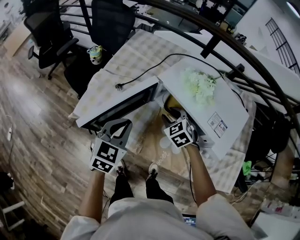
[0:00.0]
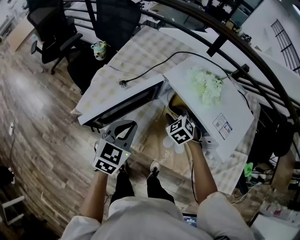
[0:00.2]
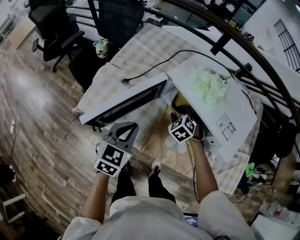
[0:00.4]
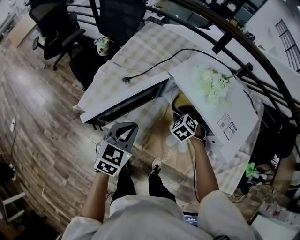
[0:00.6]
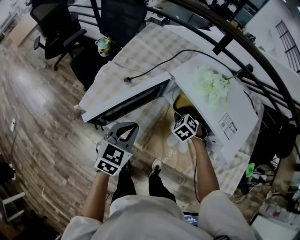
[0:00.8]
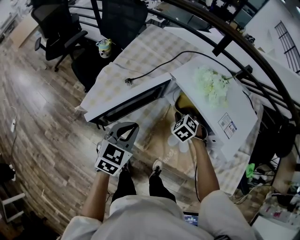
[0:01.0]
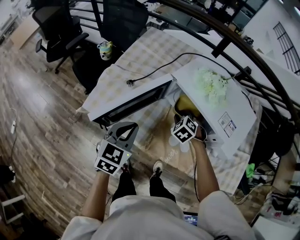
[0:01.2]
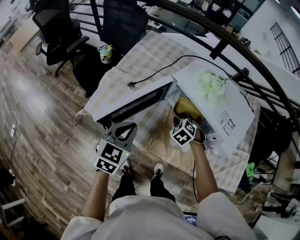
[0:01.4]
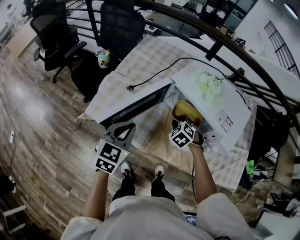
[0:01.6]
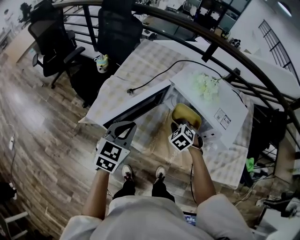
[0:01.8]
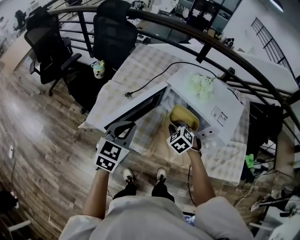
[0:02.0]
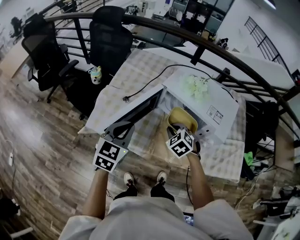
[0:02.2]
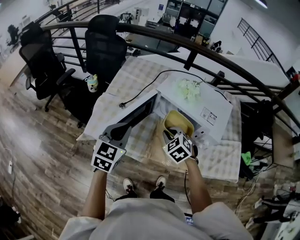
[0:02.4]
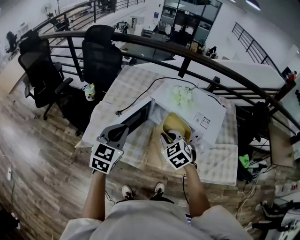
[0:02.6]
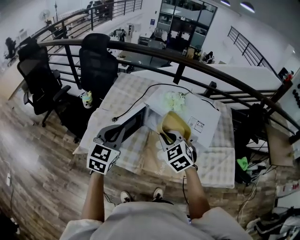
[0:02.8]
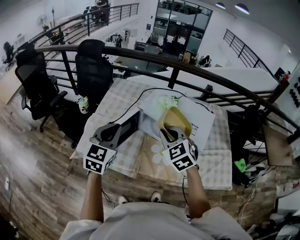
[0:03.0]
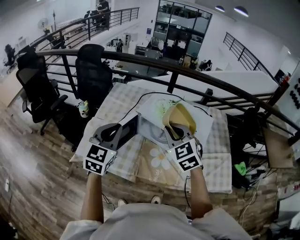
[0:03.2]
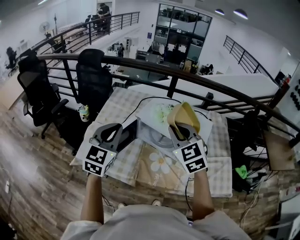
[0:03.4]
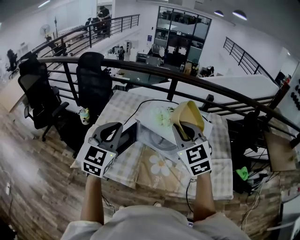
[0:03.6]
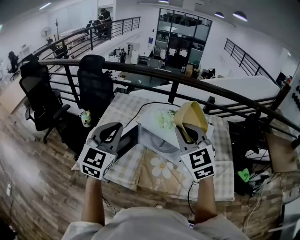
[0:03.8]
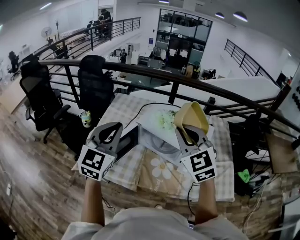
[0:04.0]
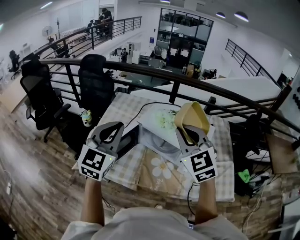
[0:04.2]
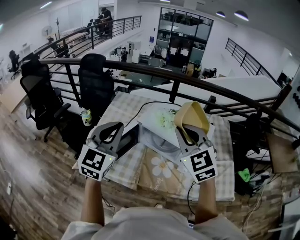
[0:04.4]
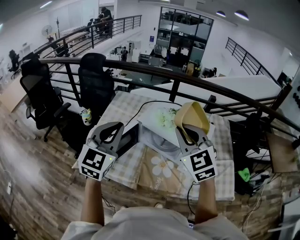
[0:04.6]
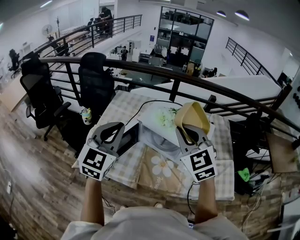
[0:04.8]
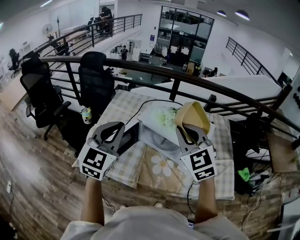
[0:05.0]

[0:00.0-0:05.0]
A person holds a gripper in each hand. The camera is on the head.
0:00.0 to 0:01.6: The left gripper ends up approximately 5 cm from where it was. The right gripper shifts by about 5 cm, and closes.
0:01.6 to 0:03.4: The right gripper goes about 35 cm upward, and points its fingers roughly 40 degrees further upward. Meanwhile the left gripper heads upward, covering about 20 cm, and rotates some 20 degrees.
0:03.4 to 0:05.0: The grippers stay close to where they were, moving slightly.

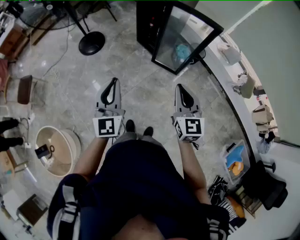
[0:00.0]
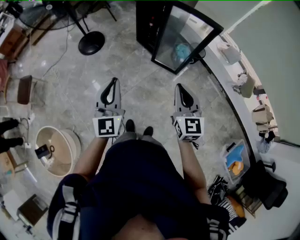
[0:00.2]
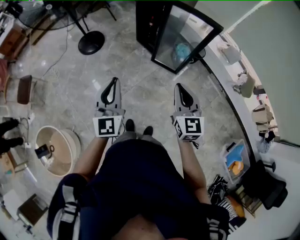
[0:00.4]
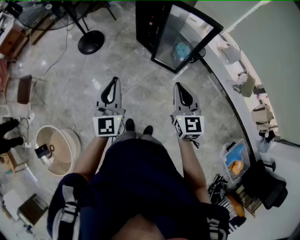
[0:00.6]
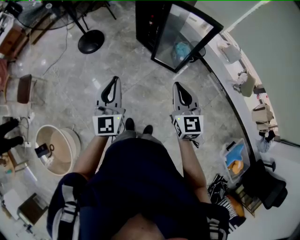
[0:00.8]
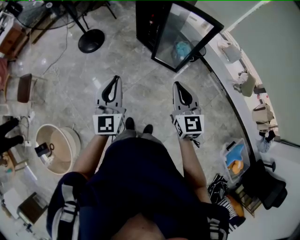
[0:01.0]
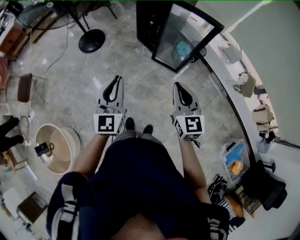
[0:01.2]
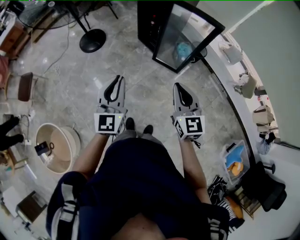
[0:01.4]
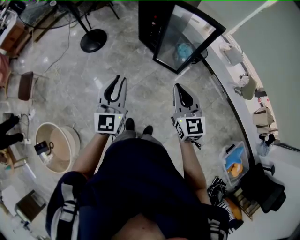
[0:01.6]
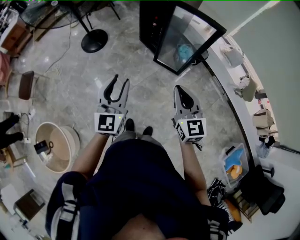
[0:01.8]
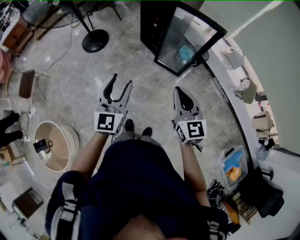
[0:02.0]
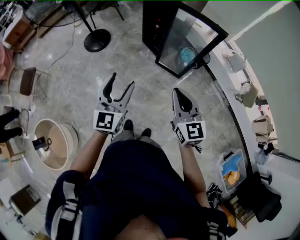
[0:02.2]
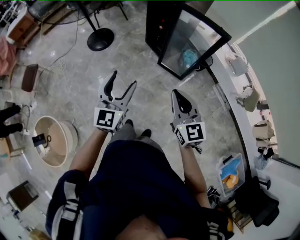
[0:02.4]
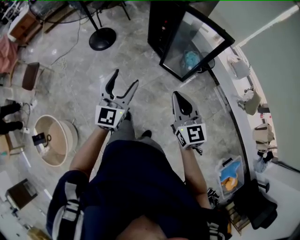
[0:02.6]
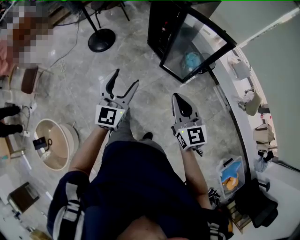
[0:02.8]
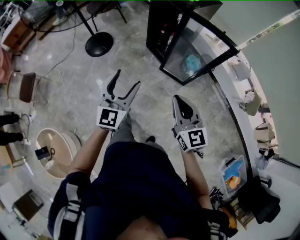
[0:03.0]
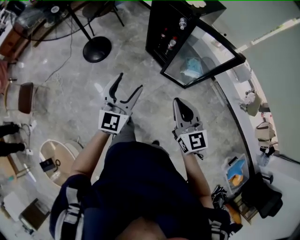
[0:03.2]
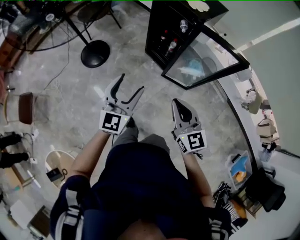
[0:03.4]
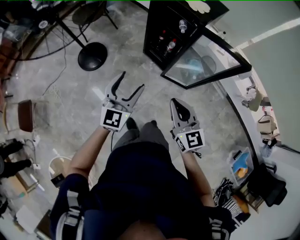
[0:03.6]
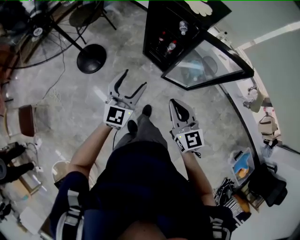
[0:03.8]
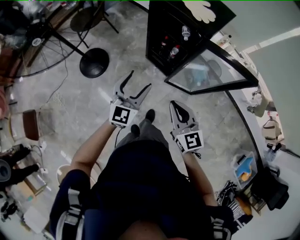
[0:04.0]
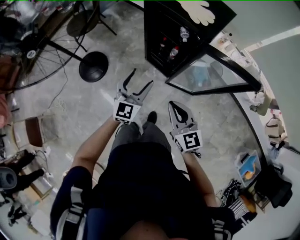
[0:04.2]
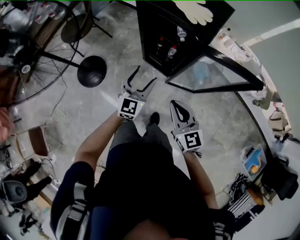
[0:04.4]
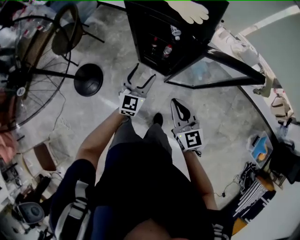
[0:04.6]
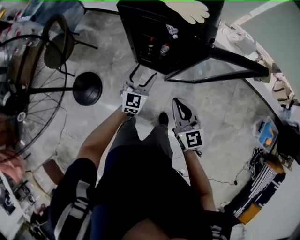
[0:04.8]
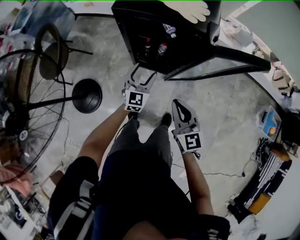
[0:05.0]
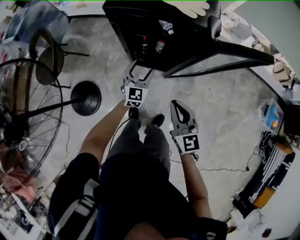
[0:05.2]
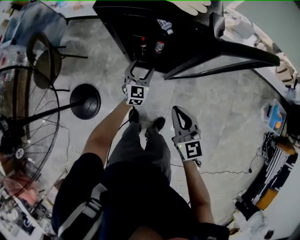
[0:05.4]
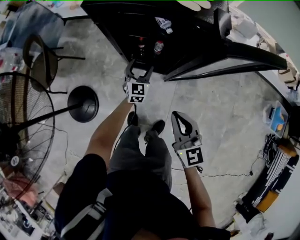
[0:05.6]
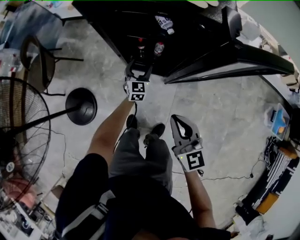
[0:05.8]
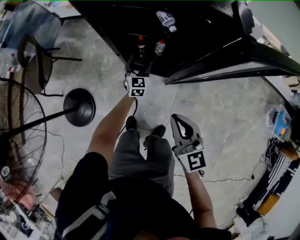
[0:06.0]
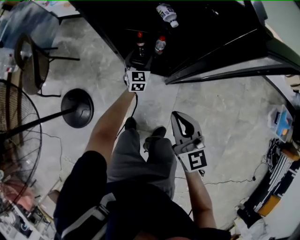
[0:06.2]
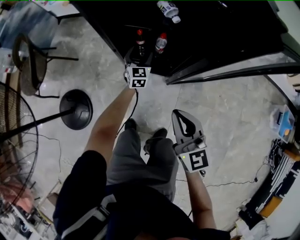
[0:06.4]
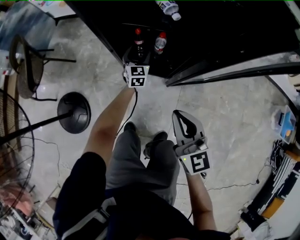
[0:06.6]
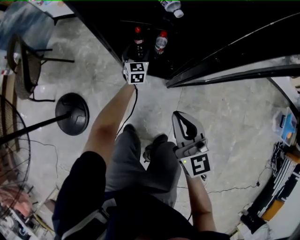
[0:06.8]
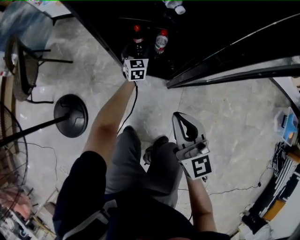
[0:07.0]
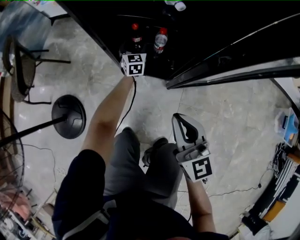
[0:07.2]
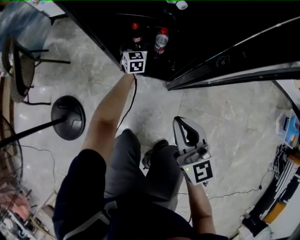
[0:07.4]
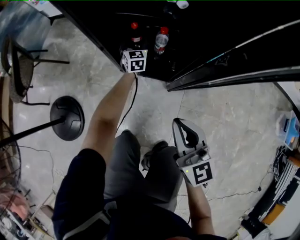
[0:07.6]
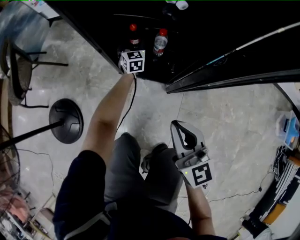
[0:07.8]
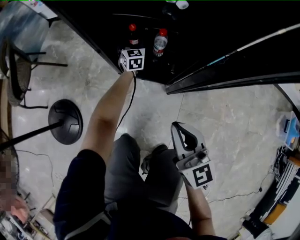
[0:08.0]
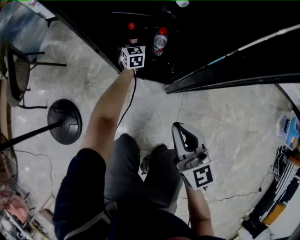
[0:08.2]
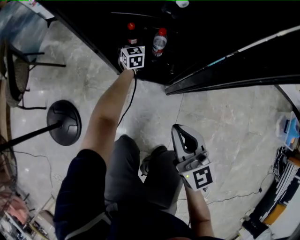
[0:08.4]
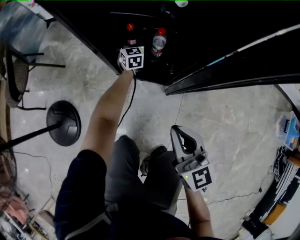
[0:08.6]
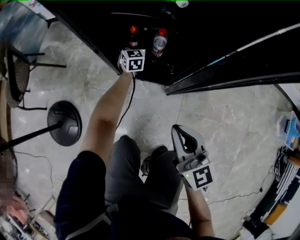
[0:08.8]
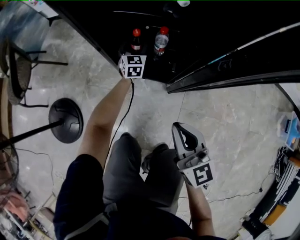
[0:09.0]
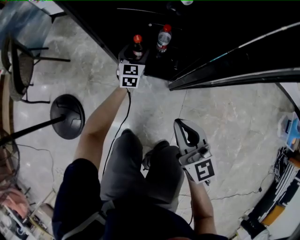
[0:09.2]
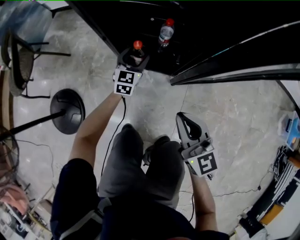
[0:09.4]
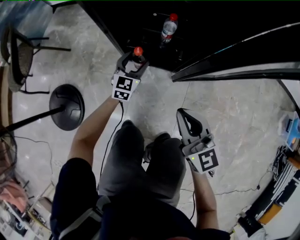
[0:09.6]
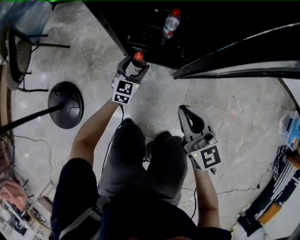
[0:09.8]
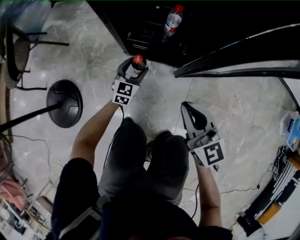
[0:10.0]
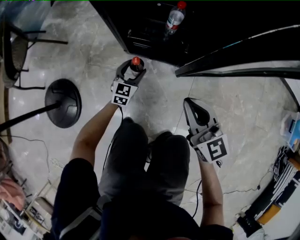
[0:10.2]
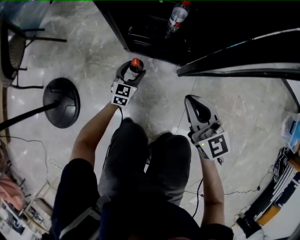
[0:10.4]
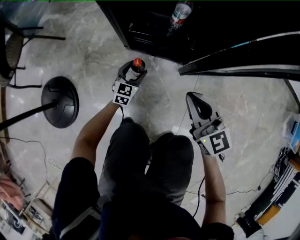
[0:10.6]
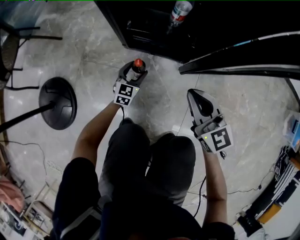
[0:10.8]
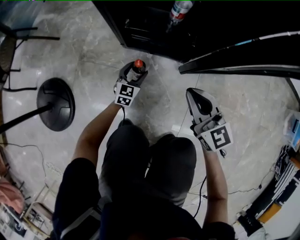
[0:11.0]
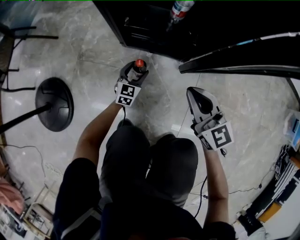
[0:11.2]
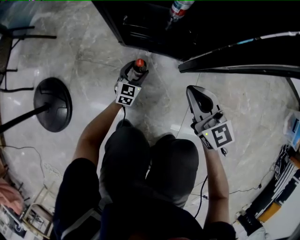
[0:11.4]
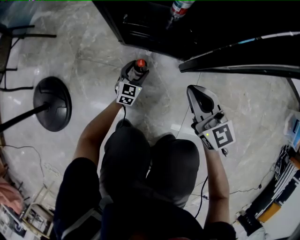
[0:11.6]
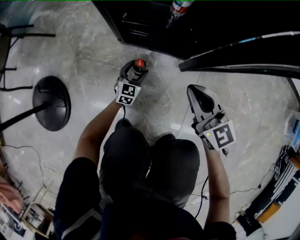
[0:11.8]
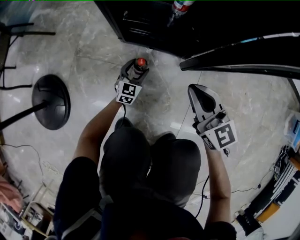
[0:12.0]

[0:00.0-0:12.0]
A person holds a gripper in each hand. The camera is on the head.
0:00.0 to 0:01.6: There are only small adjustments of the grippers.
0:01.6 to 0:03.0: The right gripper moves forward and to the left, about 10 cm. The left gripper travels forward by approximately 10 cm, and opens its fingers.
0:03.0 to 0:04.4: Both grippers travel together forward, about 40 cm. The left gripper rotates roughly 20 degrees.
0:04.4 to 0:06.0: The left gripper travels downward and forward by roughly 40 cm. The right gripper moves downward and forward, about 20 cm, and changes its angle by some 20 degrees.
0:06.0 to 0:07.6: The right gripper shifts roughly 15 cm downward. The left gripper heads downward and forward, covering some 25 cm.
0:07.6 to 0:09.0: The grippers stay close to where they were, moving slightly.
0:09.0 to 0:10.4: The left gripper shifts approximately 25 cm backward and downward. Meanwhile the right gripper travels downward by about 10 cm.
0:10.4 to 0:12.0: Both grippers move downward, some 10 cm.

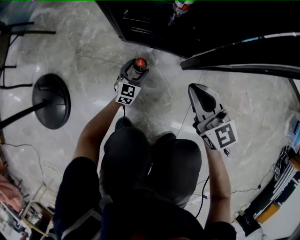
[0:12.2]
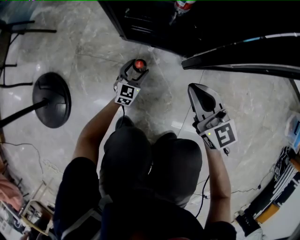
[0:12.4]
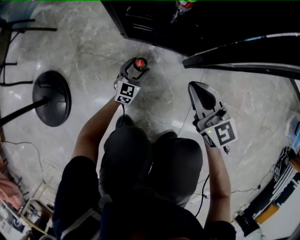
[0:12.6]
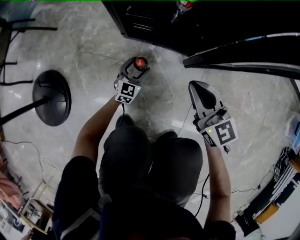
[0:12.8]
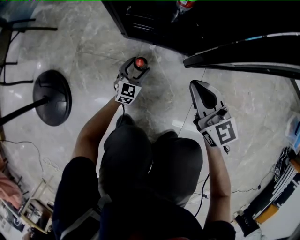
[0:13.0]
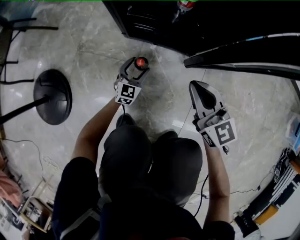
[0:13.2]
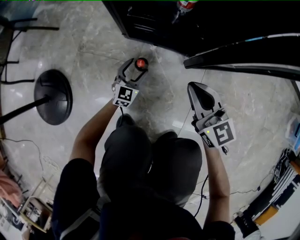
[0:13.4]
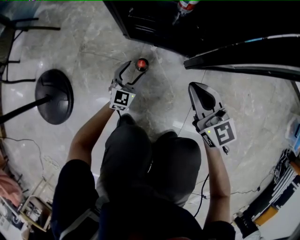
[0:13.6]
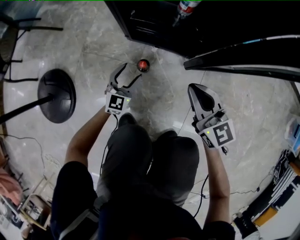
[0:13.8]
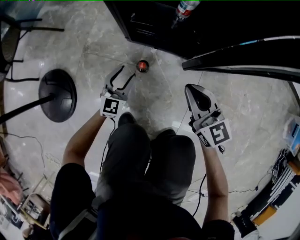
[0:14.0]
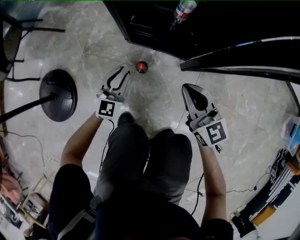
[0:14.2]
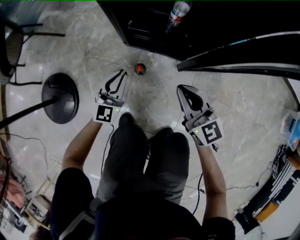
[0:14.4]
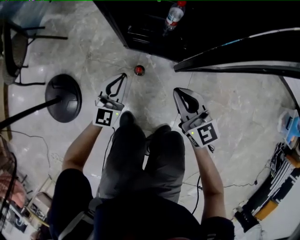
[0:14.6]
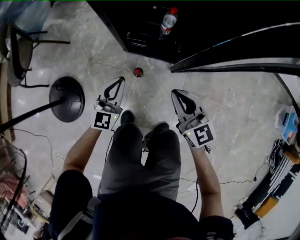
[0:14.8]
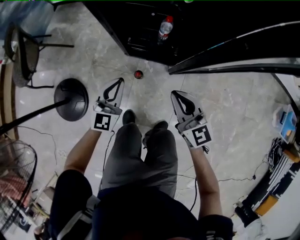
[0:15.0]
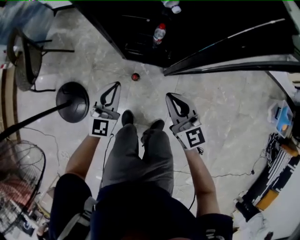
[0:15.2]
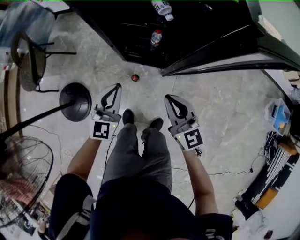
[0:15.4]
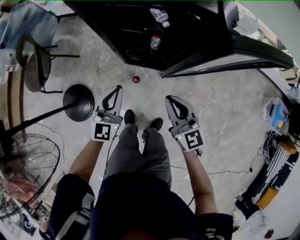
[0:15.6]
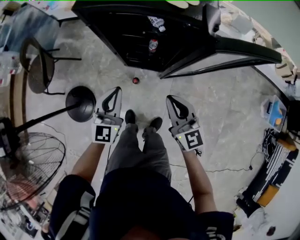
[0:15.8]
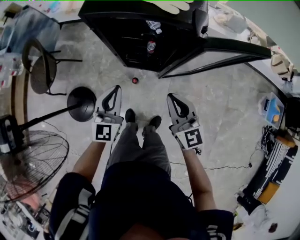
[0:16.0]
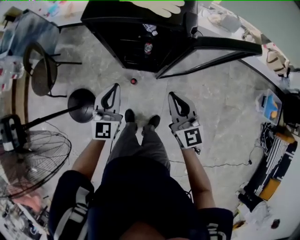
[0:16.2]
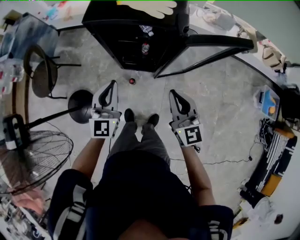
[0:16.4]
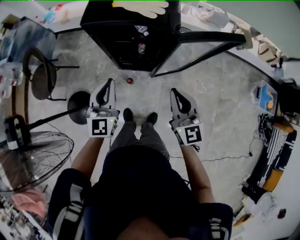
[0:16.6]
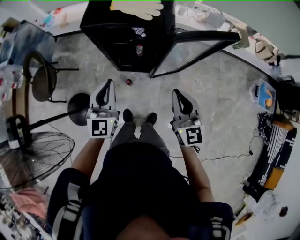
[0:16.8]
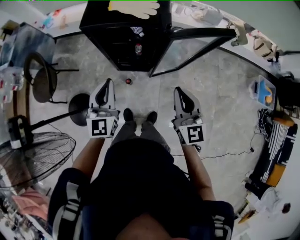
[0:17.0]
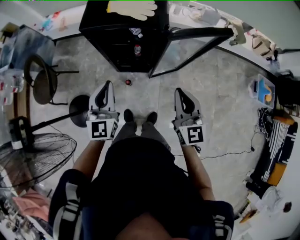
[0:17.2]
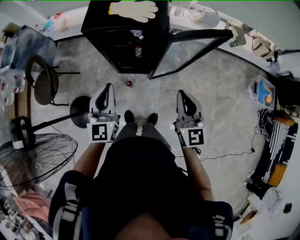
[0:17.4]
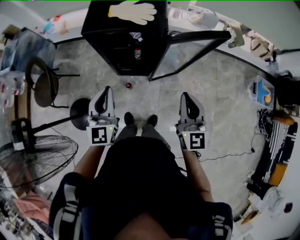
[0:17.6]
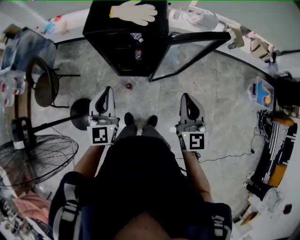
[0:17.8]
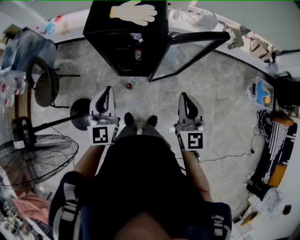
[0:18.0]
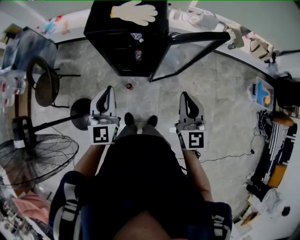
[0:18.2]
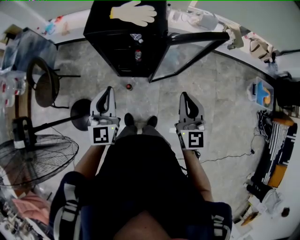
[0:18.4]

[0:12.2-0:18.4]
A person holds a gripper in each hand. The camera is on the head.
0:12.2 to 0:13.8: The left gripper is displaced upward and to the left by roughly 10 cm.
0:13.8 to 0:15.4: Both grippers move upward, roughly 40 cm. The left gripper closes its fingers.
0:15.4 to 0:16.8: The two grippers go approximately 30 cm upward. The right gripper swivels approximately 20 degrees.
0:16.8 to 0:18.4: Both grippers move upward, approximately 5 cm.
